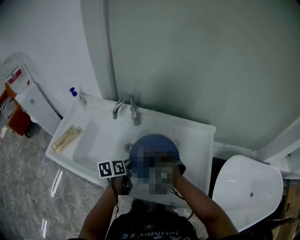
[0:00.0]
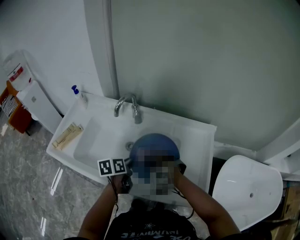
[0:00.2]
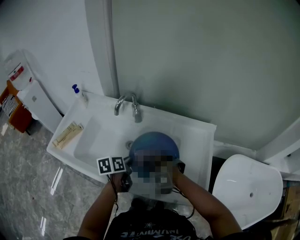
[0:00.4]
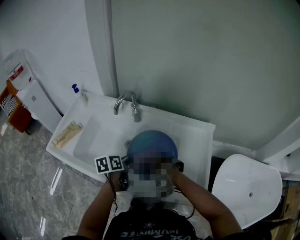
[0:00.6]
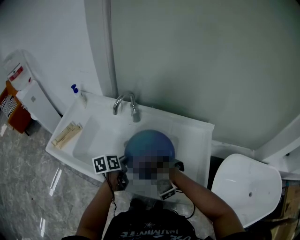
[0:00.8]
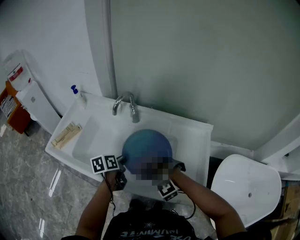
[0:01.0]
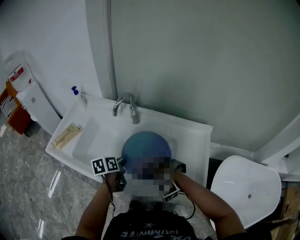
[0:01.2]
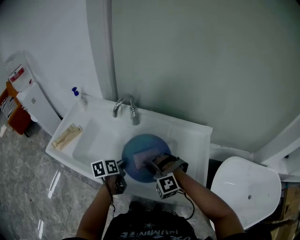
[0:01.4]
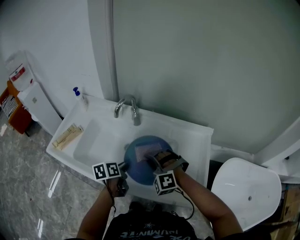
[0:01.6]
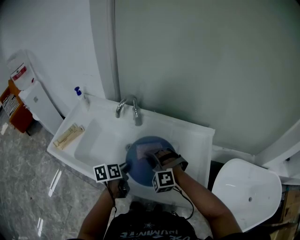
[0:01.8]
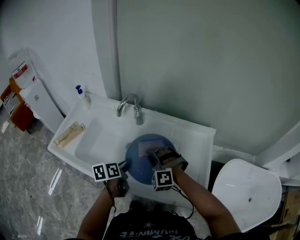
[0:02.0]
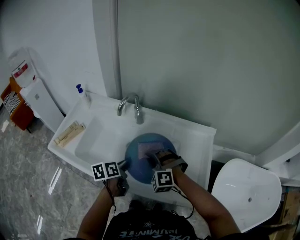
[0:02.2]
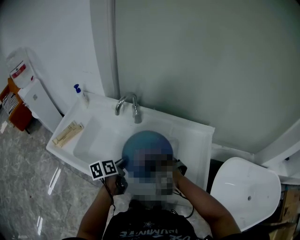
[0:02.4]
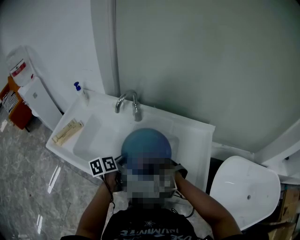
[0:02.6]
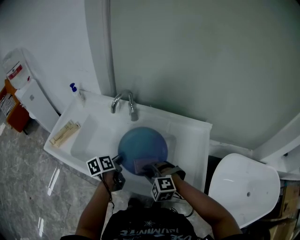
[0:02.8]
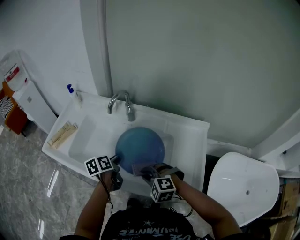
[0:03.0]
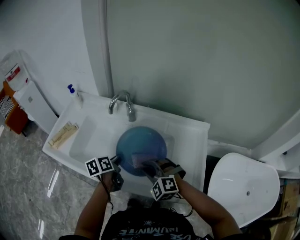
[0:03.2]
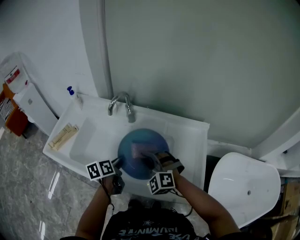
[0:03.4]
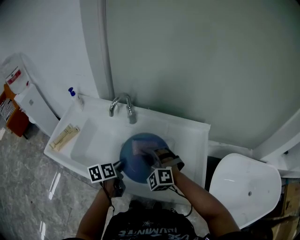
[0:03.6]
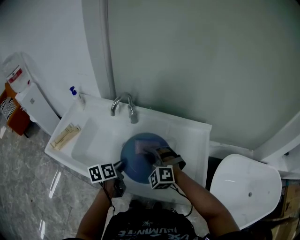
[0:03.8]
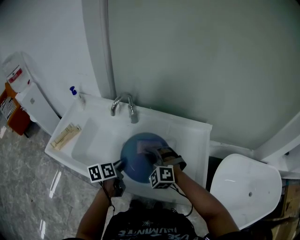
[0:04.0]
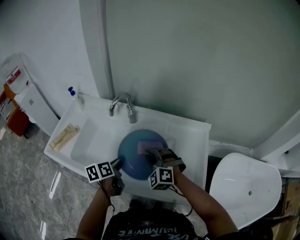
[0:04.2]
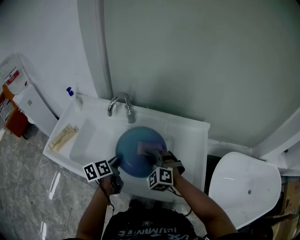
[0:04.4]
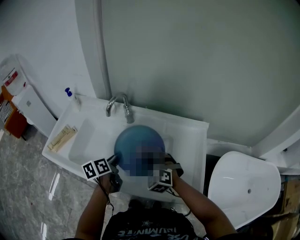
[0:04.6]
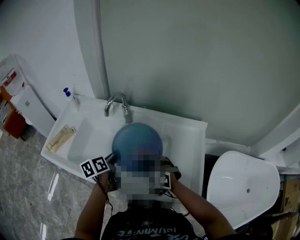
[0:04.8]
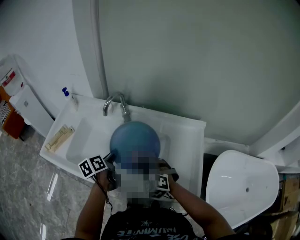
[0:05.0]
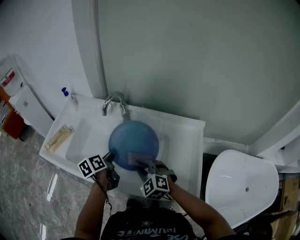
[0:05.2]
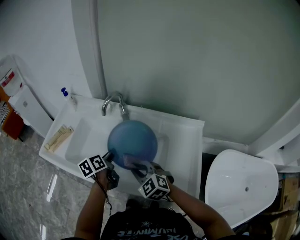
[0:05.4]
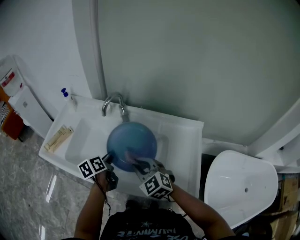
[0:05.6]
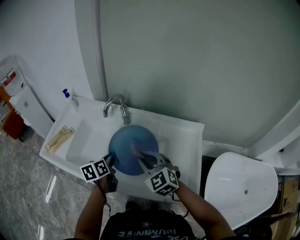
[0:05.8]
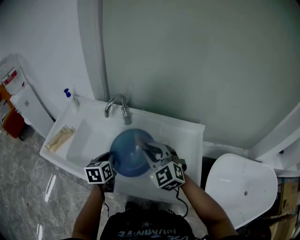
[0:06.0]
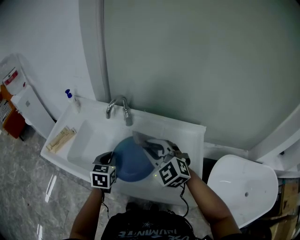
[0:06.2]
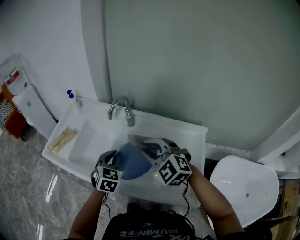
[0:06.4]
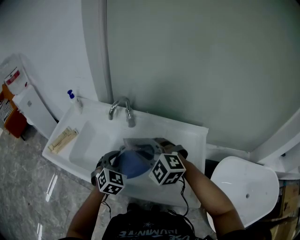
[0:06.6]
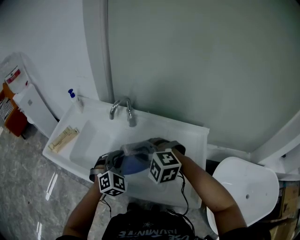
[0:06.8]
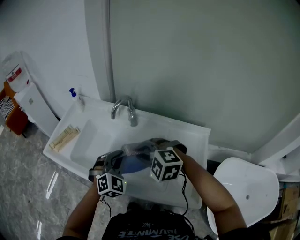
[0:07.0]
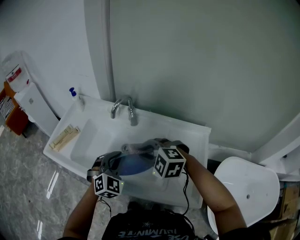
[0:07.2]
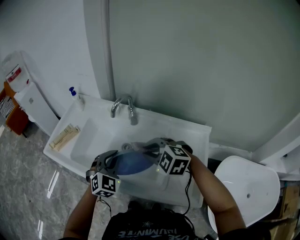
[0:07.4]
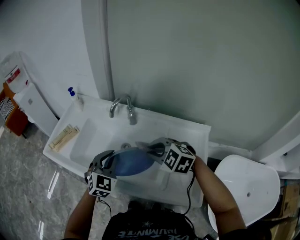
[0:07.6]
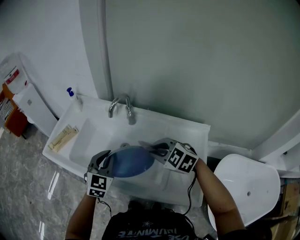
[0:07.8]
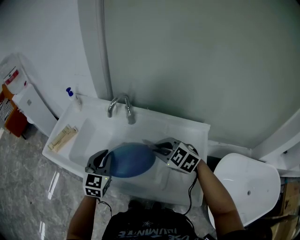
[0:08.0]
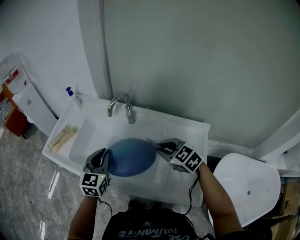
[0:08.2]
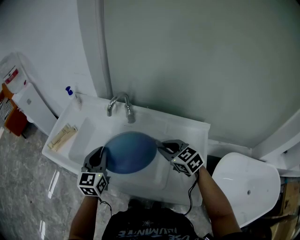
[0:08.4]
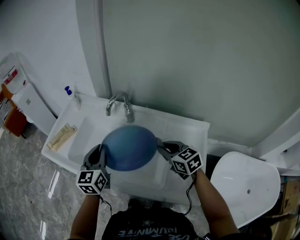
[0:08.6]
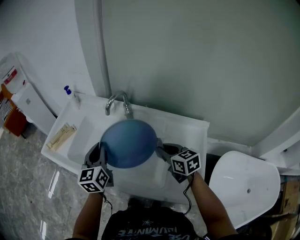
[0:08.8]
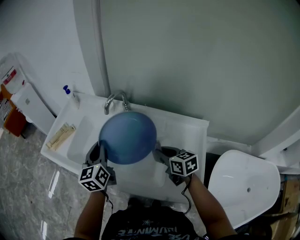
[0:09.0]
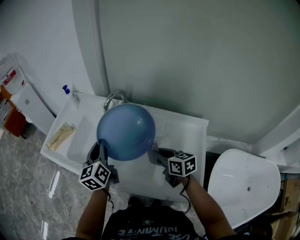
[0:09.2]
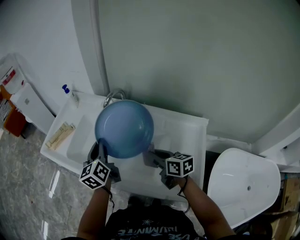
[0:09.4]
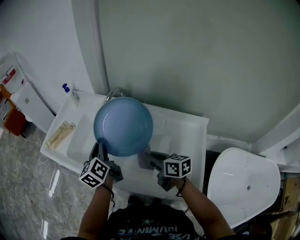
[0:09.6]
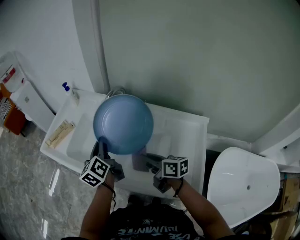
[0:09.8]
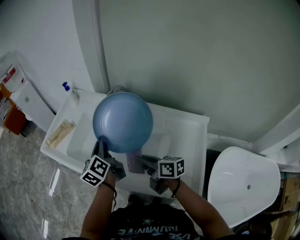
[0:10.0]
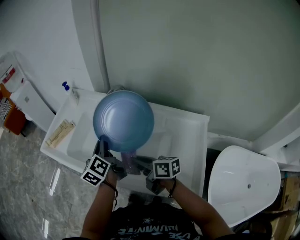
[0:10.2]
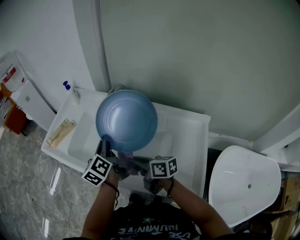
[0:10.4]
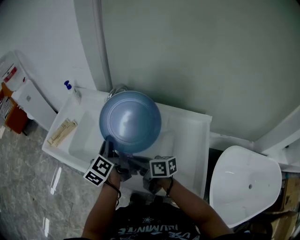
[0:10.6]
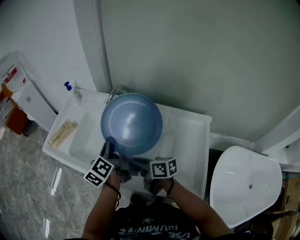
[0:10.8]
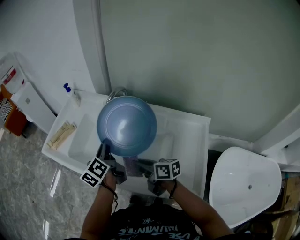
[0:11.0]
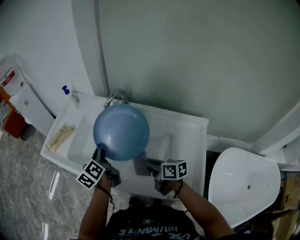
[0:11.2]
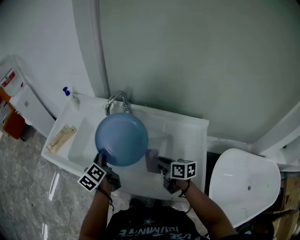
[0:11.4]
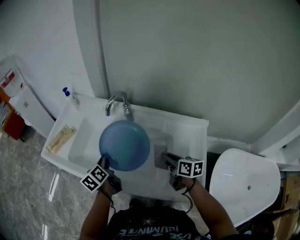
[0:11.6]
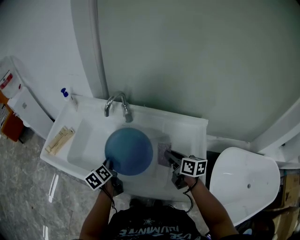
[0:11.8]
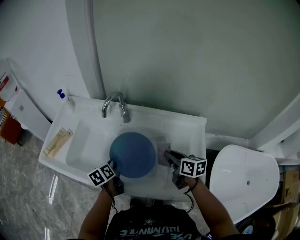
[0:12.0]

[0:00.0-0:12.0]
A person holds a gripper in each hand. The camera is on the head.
0:00.0 to 0:01.6: The right gripper moves some 10 cm backward and comes back.
0:01.6 to 0:03.0: The right gripper travels backward and downward by about 10 cm, and changes its angle by about 30 degrees.
0:03.0 to 0:04.4: The right gripper heads forward, covering roughly 10 cm, and changes its angle by some 30 degrees.
0:04.4 to 0:06.0: The left gripper turns by some 30 degrees. Meanwhile the right gripper heads upward, covering roughly 10 cm, and rotates roughly 20 degrees.
0:06.0 to 0:07.6: The left gripper is displaced upward by approximately 5 cm, and rotates around the line of its fingers by about 50 degrees, clockwise from behind. The right gripper turns by roughly 30 degrees.
0:07.6 to 0:09.0: The right gripper heads to the right and downward, covering roughly 10 cm, and rotates around the line of its fingers by some 60 degrees, clockwise from behind, while the left gripper shifts by roughly 5 cm, and rotates around the line of its fingers by approximately 50 degrees, counterclockwise from behind.
0:09.0 to 0:10.4: The left gripper turns by about 30 degrees. The right gripper moves to the left, roughly 15 cm, and changes its angle by some 30 degrees.
0:10.4 to 0:12.0: The right gripper moves to the right, approximately 20 cm, and rotates some 30 degrees. The left gripper travels downward by about 15 cm, and angles its fingers downward, by roughly 30 degrees.

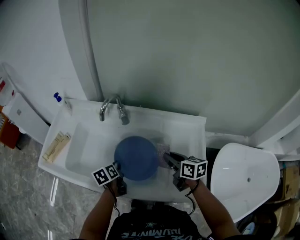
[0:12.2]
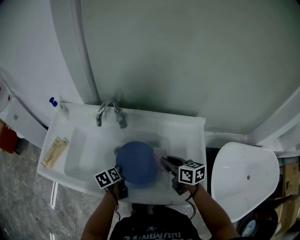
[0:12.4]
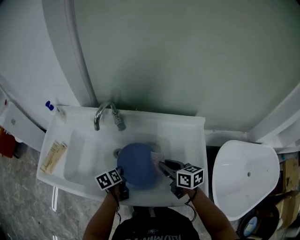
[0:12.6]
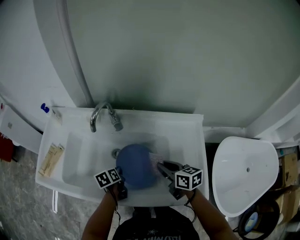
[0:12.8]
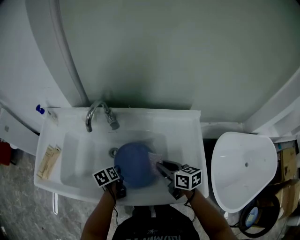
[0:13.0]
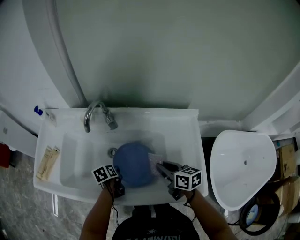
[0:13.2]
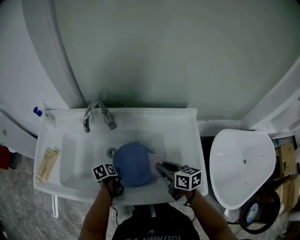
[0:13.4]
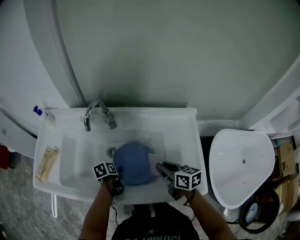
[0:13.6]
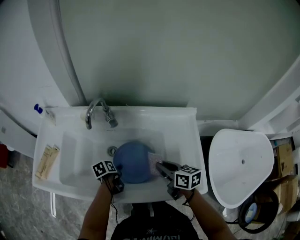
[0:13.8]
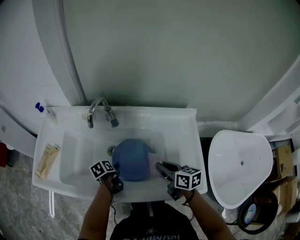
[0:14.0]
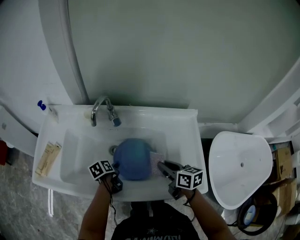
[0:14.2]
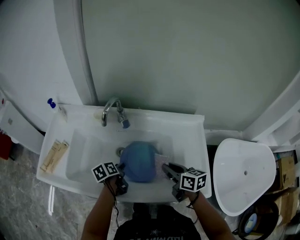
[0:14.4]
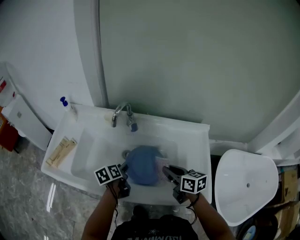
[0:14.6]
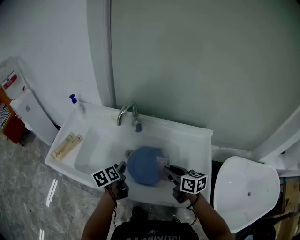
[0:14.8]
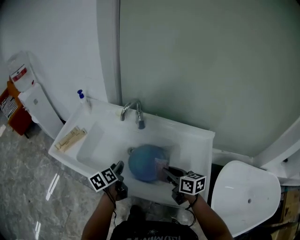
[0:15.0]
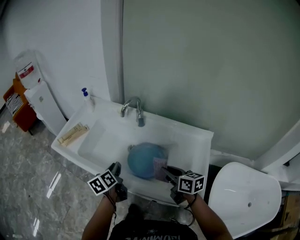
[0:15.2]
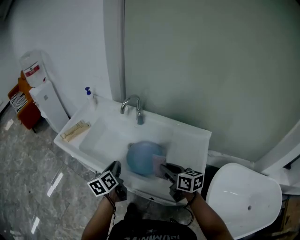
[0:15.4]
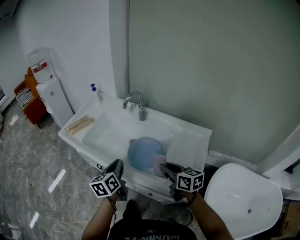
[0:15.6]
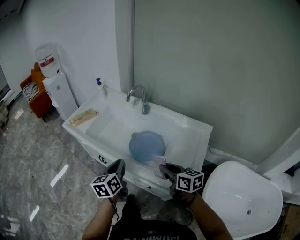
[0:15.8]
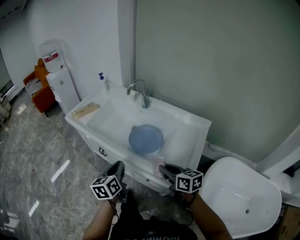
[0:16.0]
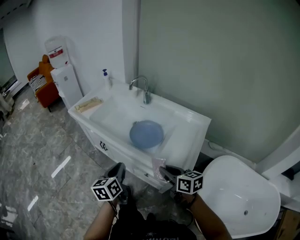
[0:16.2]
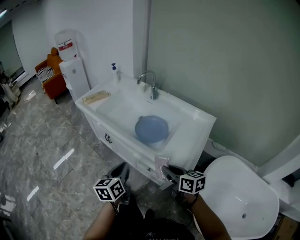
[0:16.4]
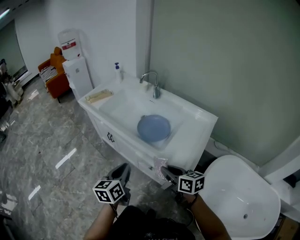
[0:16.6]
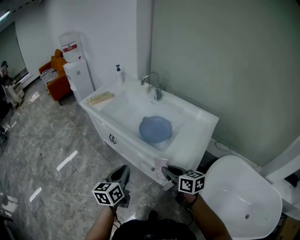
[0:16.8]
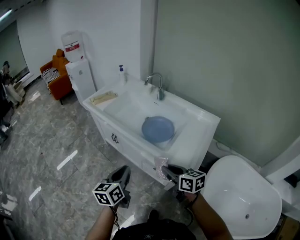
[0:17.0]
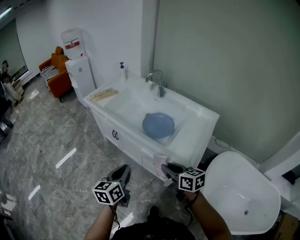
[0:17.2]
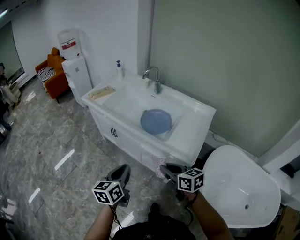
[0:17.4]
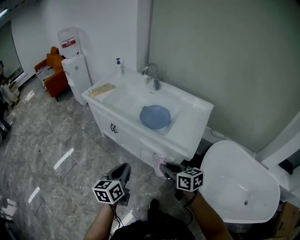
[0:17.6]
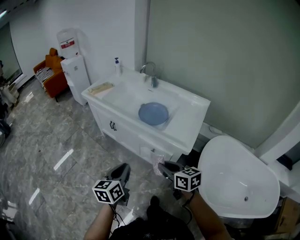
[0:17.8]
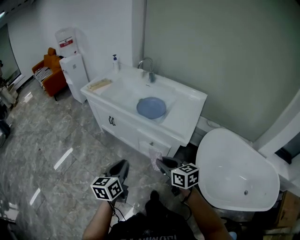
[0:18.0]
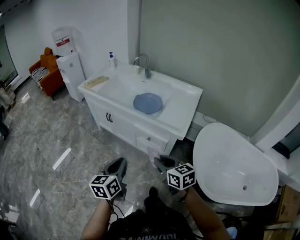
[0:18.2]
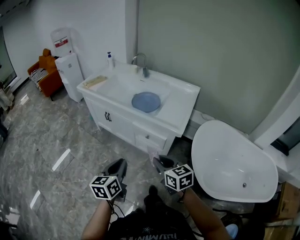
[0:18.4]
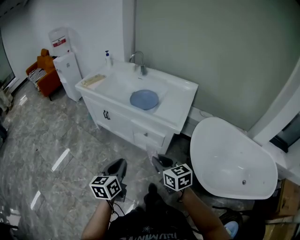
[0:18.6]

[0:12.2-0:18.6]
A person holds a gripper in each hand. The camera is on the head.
0:12.2 to 0:13.8: The left gripper heads downward, covering approximately 10 cm, swivels about 20 degrees, and opens its fingers.
0:13.8 to 0:15.4: The right gripper moves upward, about 5 cm, and rotates about 20 degrees. The left gripper shifts about 20 cm upward, angles its fingers upward, by some 30 degrees, and closes.
0:15.4 to 0:17.0: The two grippers go about 25 cm backward.
0:17.0 to 0:18.6: Both grippers move backward, roughly 20 cm.

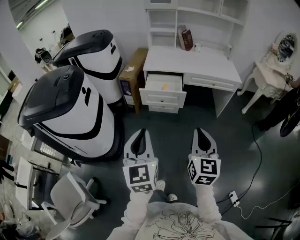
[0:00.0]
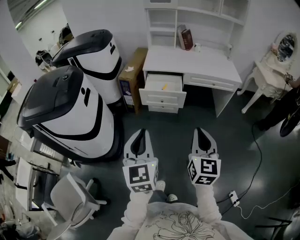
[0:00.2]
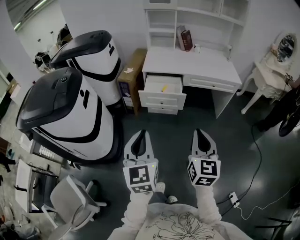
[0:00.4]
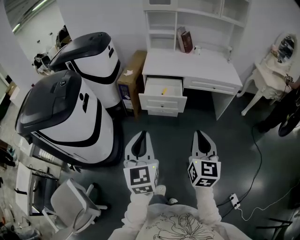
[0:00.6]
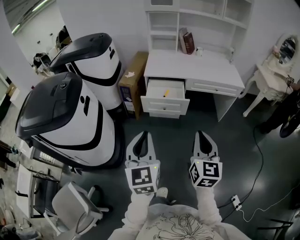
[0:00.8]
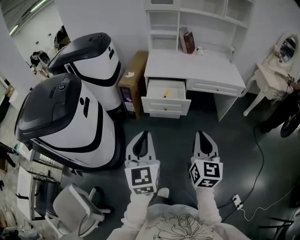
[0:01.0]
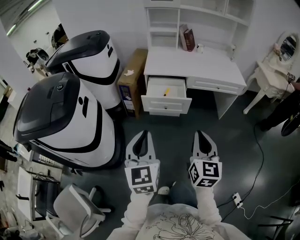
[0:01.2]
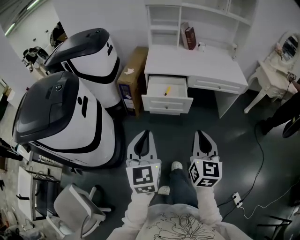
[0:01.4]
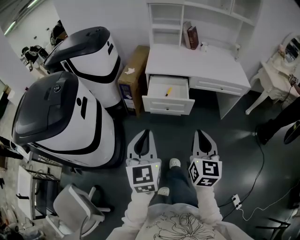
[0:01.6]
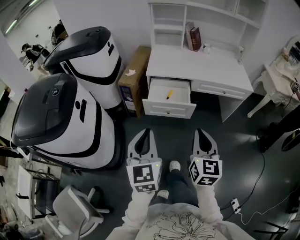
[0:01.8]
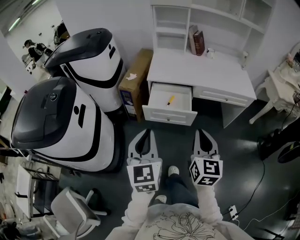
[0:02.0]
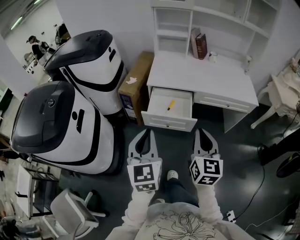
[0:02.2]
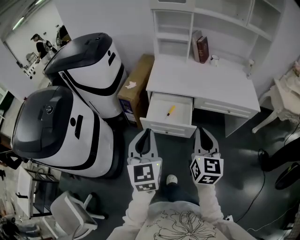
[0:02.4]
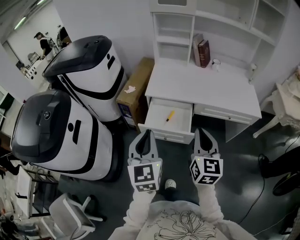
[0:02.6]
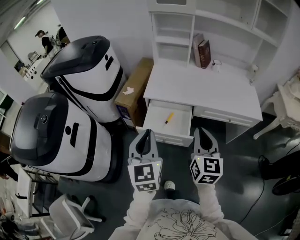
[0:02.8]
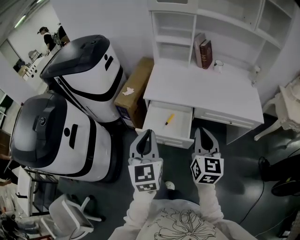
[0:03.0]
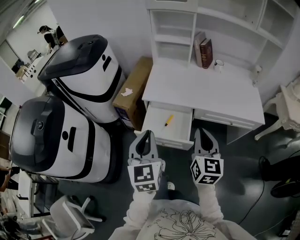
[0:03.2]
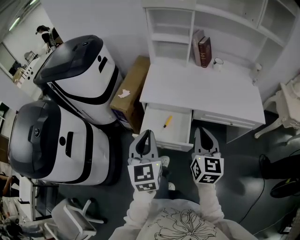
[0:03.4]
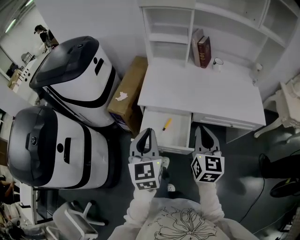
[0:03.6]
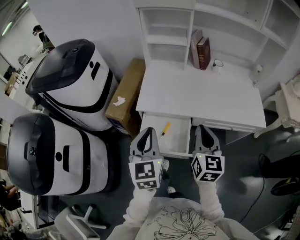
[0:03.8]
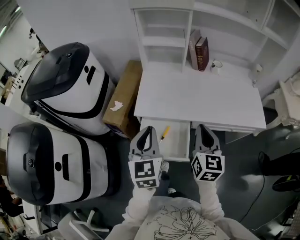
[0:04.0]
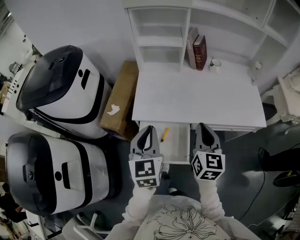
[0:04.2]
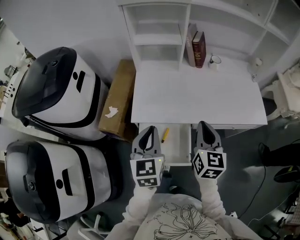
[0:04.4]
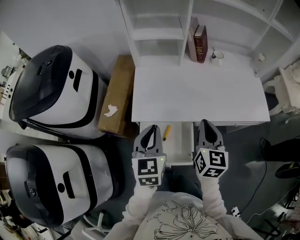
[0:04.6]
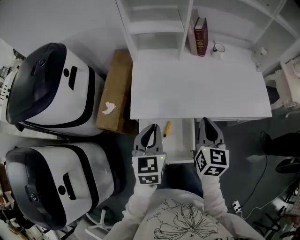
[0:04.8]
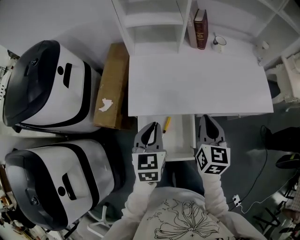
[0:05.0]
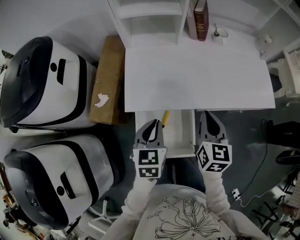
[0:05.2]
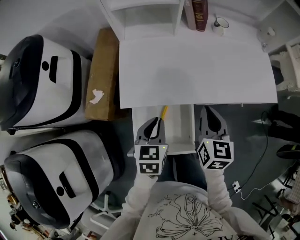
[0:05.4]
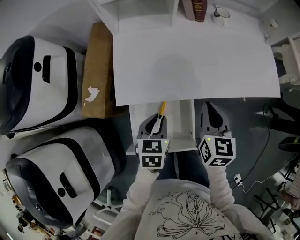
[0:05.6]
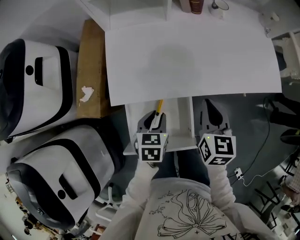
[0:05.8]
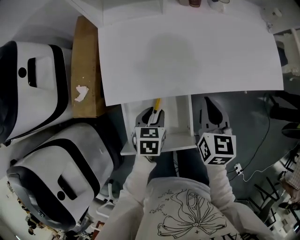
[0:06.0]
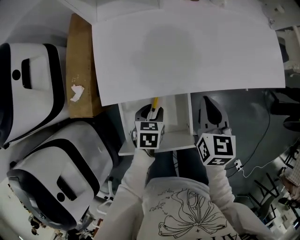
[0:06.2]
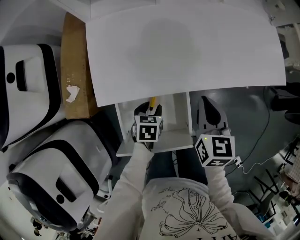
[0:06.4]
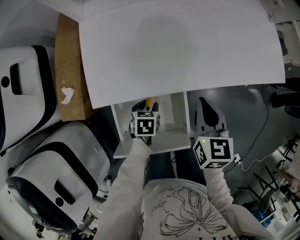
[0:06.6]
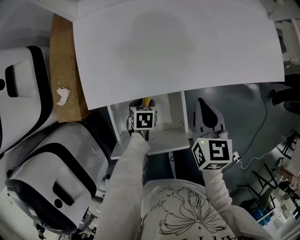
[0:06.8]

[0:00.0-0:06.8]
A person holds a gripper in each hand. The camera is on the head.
0:00.0 to 0:01.4: The right gripper heads forward and to the left, covering some 10 cm. Meanwhile the left gripper shifts approximately 10 cm forward.
0:01.4 to 0:02.8: Both grippers travel together forward, approximately 30 cm.
0:02.8 to 0:04.0: Both grippers move forward, roughly 20 cm.
0:04.0 to 0:05.4: The grippers both shift downward and forward by roughly 20 cm. The left gripper changes its angle by approximately 30 degrees.
0:05.4 to 0:06.8: The right gripper heads downward, covering roughly 10 cm. Meanwhile the left gripper moves downward, approximately 30 cm, points its fingers about 30 degrees further downward, and opens.
